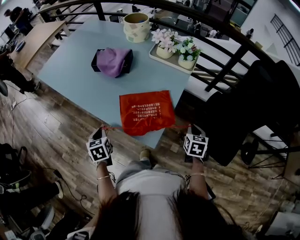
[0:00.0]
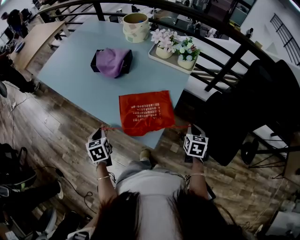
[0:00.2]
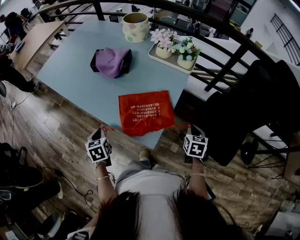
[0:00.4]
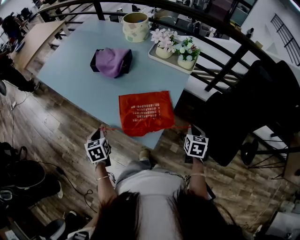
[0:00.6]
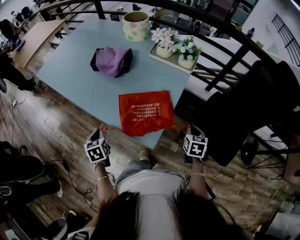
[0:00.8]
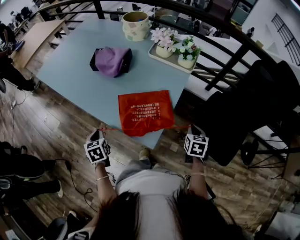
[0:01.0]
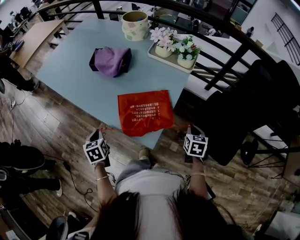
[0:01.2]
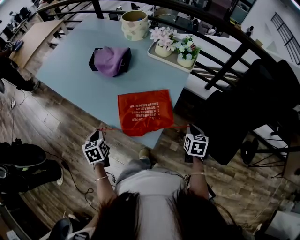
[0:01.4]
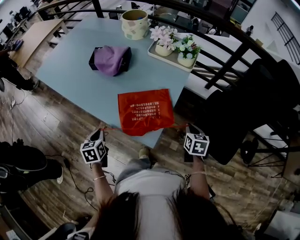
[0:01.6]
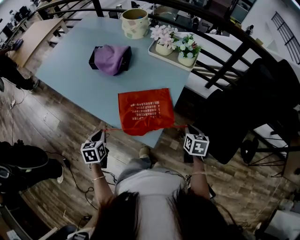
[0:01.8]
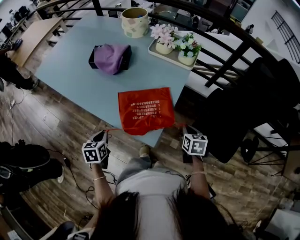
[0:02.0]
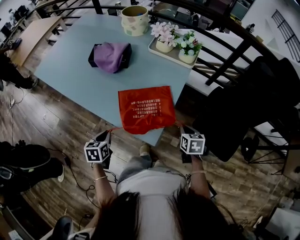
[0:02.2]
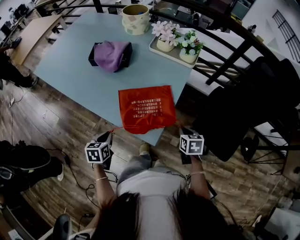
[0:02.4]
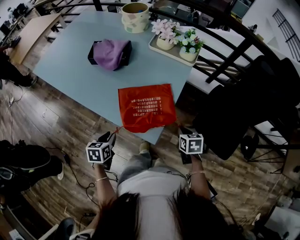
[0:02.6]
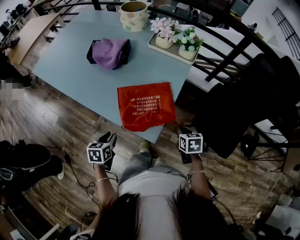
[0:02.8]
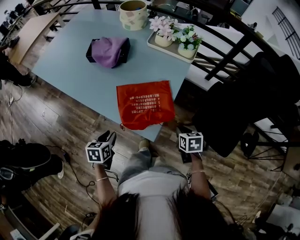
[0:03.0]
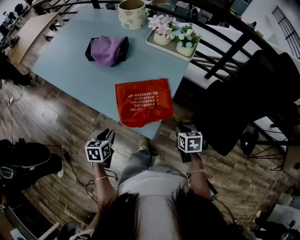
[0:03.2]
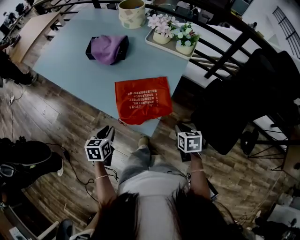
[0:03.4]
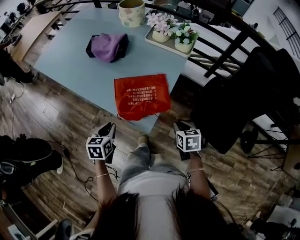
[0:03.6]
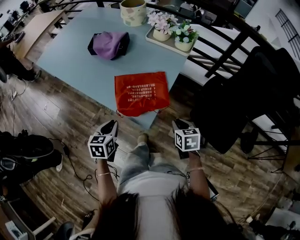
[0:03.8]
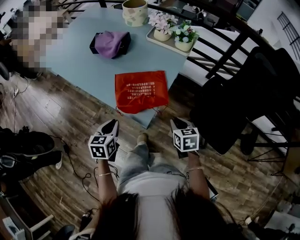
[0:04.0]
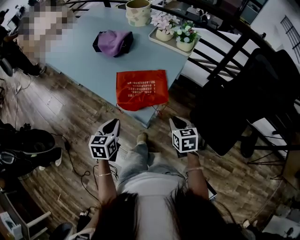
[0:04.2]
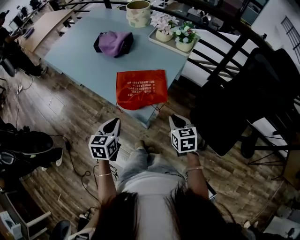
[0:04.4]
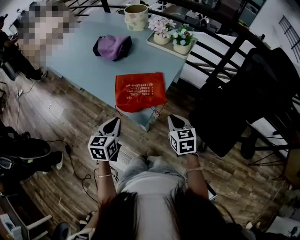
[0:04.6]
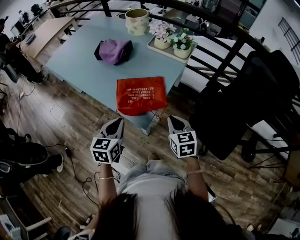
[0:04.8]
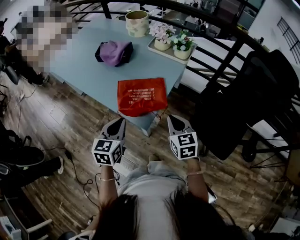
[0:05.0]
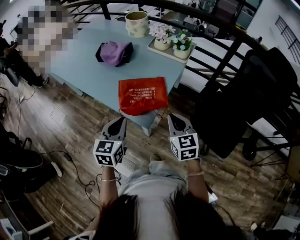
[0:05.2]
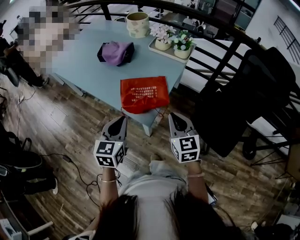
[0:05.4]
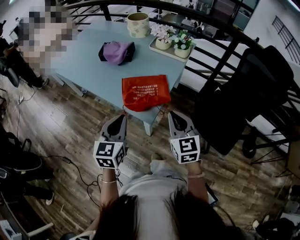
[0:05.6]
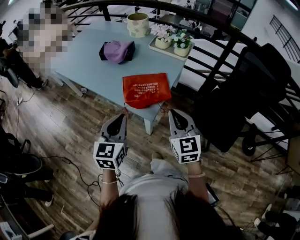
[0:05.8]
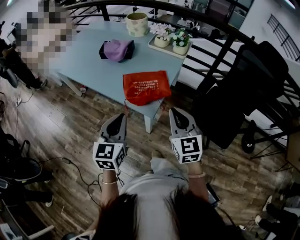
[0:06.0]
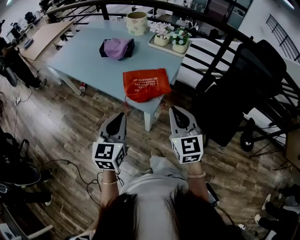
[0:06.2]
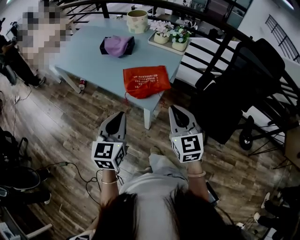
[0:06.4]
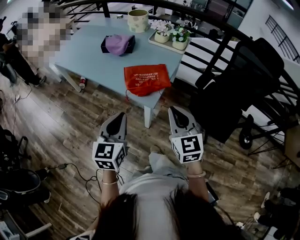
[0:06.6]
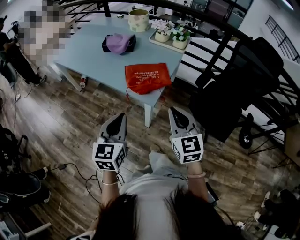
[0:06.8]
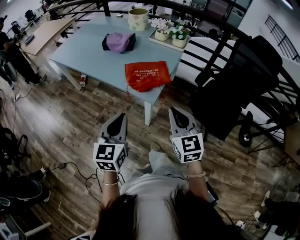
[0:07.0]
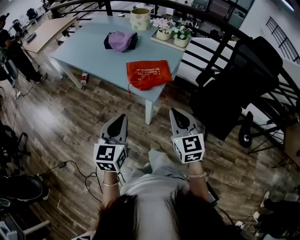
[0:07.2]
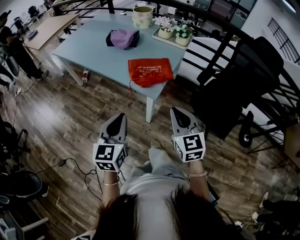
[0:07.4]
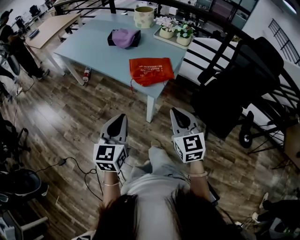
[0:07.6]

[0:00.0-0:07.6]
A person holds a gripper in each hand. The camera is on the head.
0:00.0 to 0:01.6: The grippers make only small movements.
0:01.6 to 0:03.0: The right gripper ends up some 10 cm from where it was. Meanwhile the left gripper heads to the right, covering about 5 cm, and opens its fingers.
0:03.0 to 0:04.6: The left gripper travels upward, to the right and backward by roughly 15 cm, rotates approximately 20 degrees, and closes its fingers, while the right gripper moves upward, about 10 cm, and changes its angle by roughly 30 degrees.
0:04.6 to 0:06.0: The right gripper goes about 20 cm upward, backward and to the left, and rotates approximately 30 degrees; the left gripper heads upward and backward, covering about 15 cm.
0:06.0 to 0:07.6: The two grippers go roughly 15 cm backward.

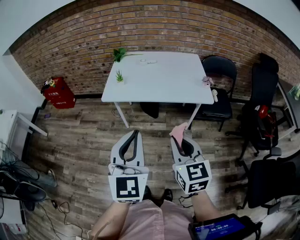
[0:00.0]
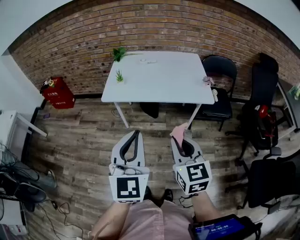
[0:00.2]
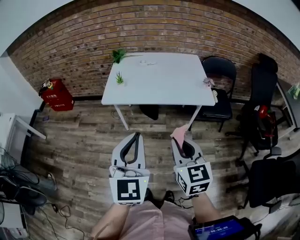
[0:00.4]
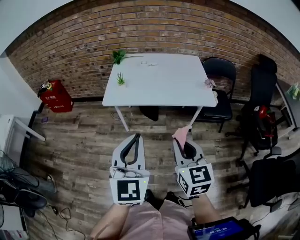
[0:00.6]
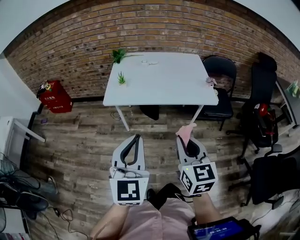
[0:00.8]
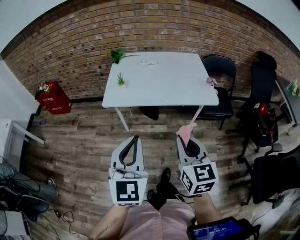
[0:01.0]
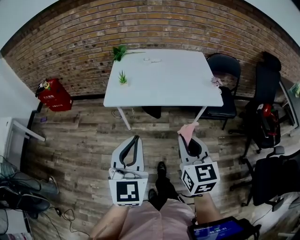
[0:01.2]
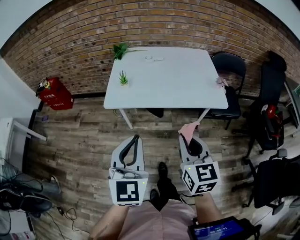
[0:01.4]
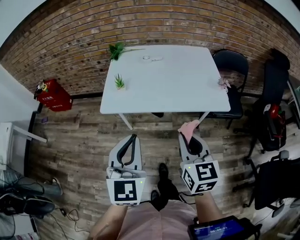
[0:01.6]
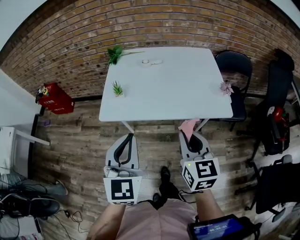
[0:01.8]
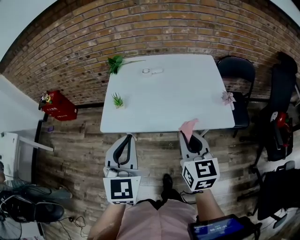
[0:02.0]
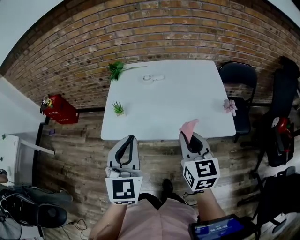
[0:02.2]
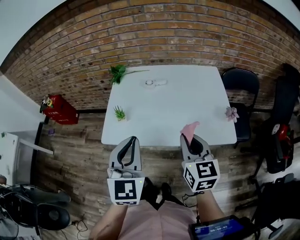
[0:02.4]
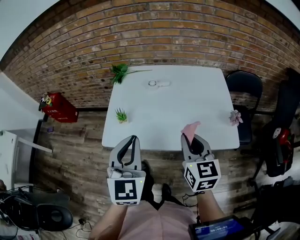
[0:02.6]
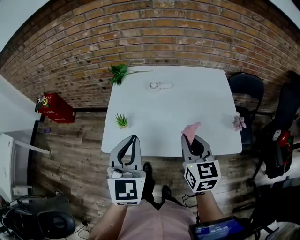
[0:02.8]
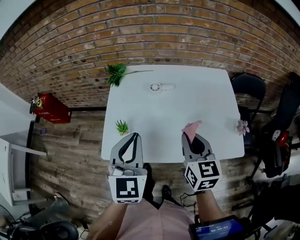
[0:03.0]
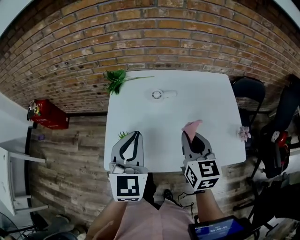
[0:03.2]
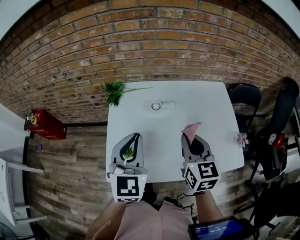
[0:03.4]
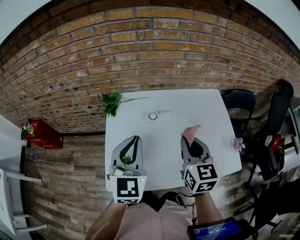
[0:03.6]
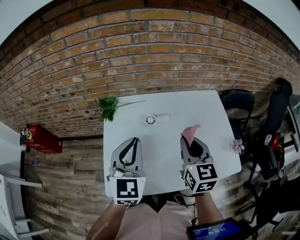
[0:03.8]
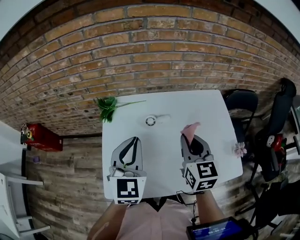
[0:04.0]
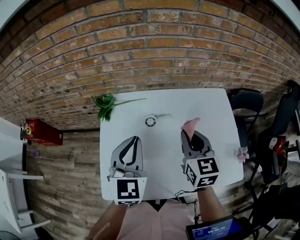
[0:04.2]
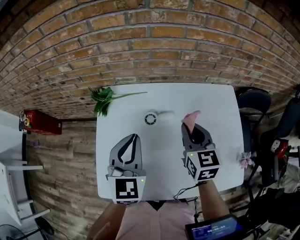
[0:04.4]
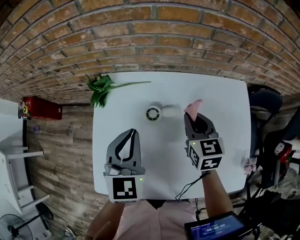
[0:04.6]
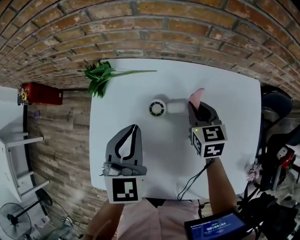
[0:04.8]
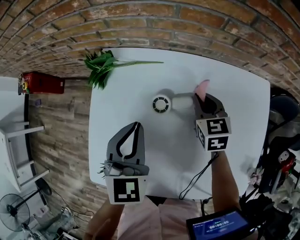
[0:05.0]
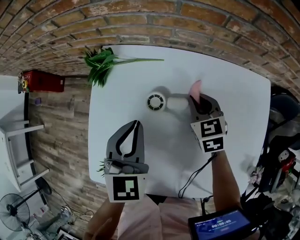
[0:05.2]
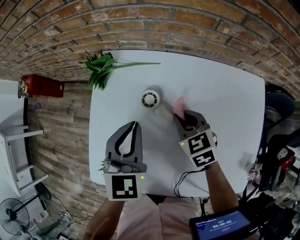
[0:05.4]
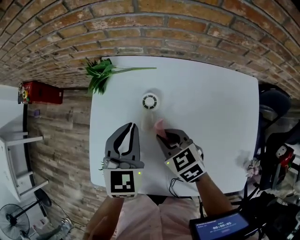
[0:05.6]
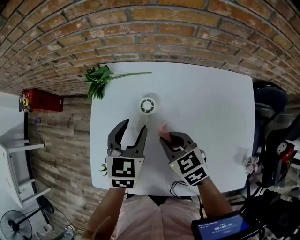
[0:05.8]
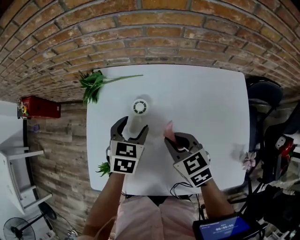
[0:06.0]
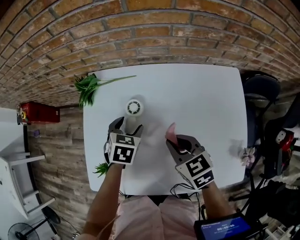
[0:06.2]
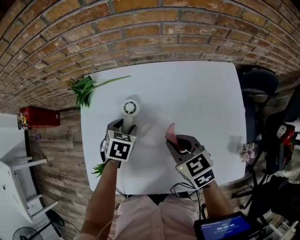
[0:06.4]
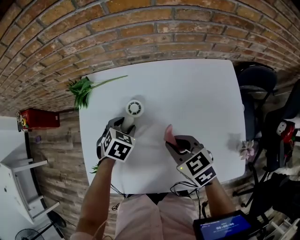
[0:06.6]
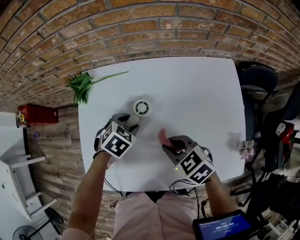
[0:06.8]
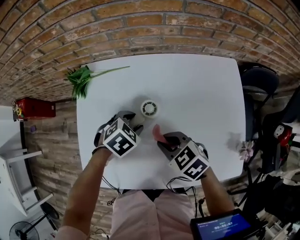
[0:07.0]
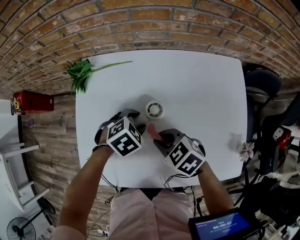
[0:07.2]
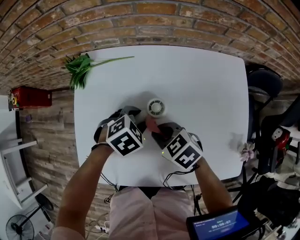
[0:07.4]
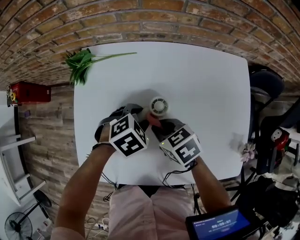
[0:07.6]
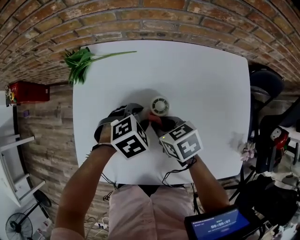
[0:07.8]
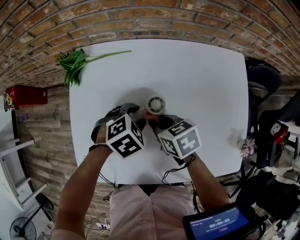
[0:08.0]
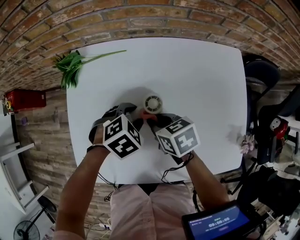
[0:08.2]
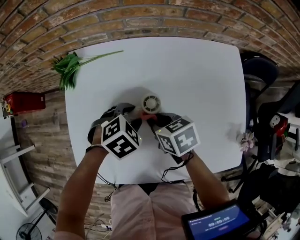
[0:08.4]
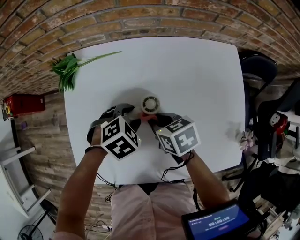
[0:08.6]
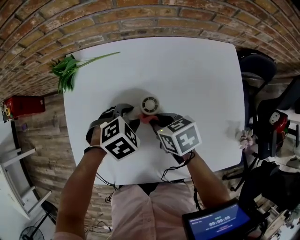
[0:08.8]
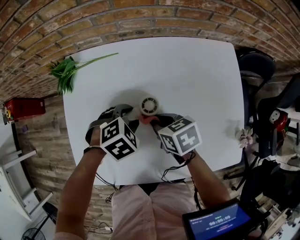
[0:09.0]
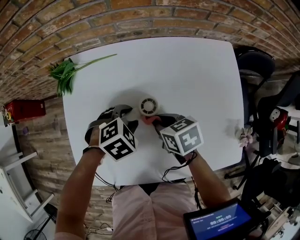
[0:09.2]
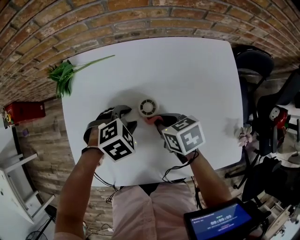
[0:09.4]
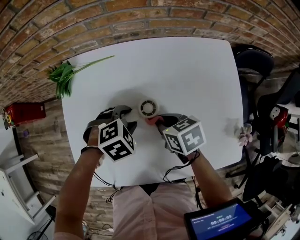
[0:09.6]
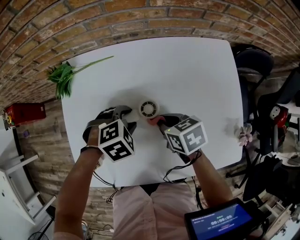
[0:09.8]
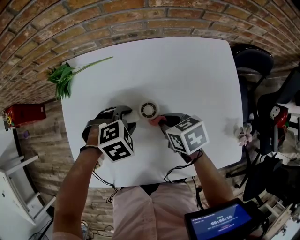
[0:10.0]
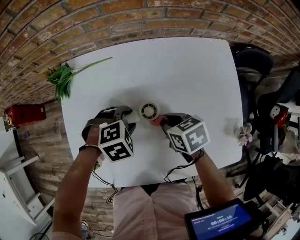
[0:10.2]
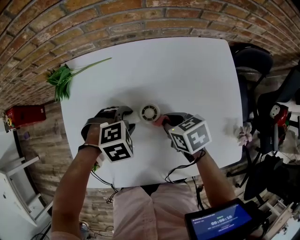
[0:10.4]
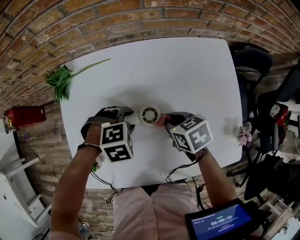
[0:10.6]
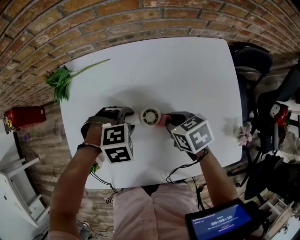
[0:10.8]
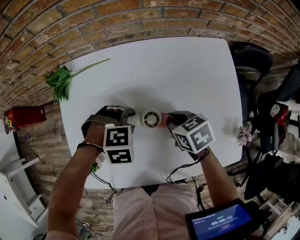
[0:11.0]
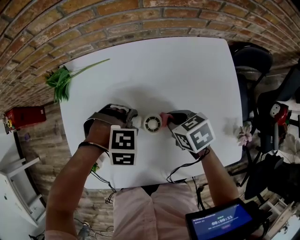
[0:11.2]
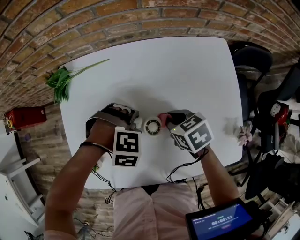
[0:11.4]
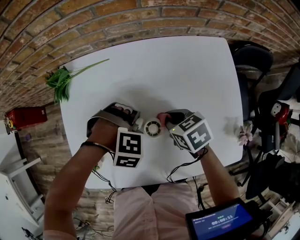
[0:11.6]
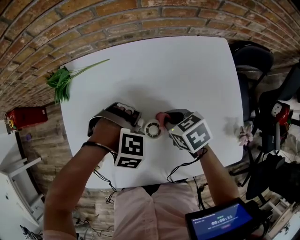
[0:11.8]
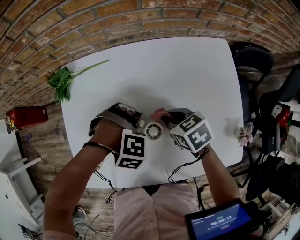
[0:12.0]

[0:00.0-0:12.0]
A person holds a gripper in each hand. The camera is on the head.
0:00.0 to 0:01.6: Both grippers travel together forward, some 15 cm.
0:01.6 to 0:03.0: Both grippers travel together forward, some 30 cm.
0:03.0 to 0:04.4: The grippers both shift forward by roughly 20 cm.
0:04.4 to 0:06.0: The left gripper moves downward, about 15 cm, rotates approximately 30 degrees, and opens; the right gripper heads downward, covering approximately 10 cm, and changes its angle by some 30 degrees.
0:06.0 to 0:07.6: The right gripper shifts roughly 5 cm downward. The left gripper ends up roughly 10 cm from where it was, and swivels approximately 40 degrees.
0:07.6 to 0:09.0: There are only small adjustments of the grippers.
0:09.0 to 0:10.4: The right gripper is displaced to the right by roughly 5 cm.
0:10.4 to 0:12.0: The left gripper turns by about 40 degrees.

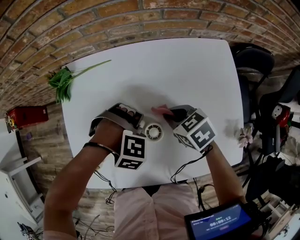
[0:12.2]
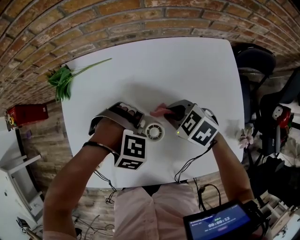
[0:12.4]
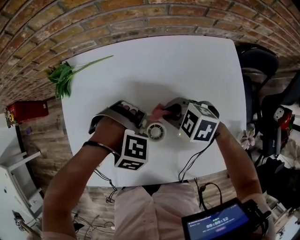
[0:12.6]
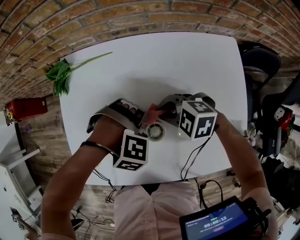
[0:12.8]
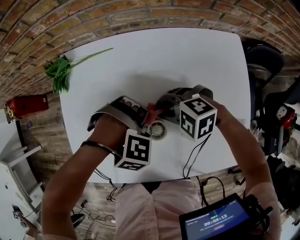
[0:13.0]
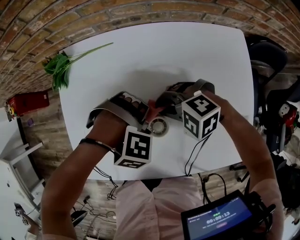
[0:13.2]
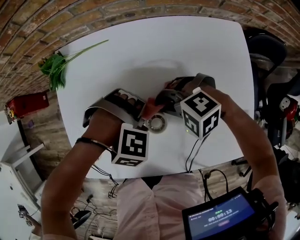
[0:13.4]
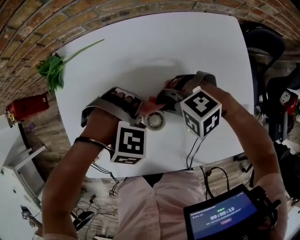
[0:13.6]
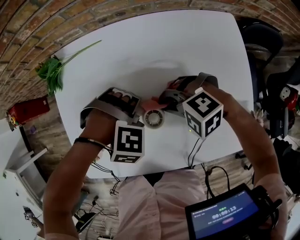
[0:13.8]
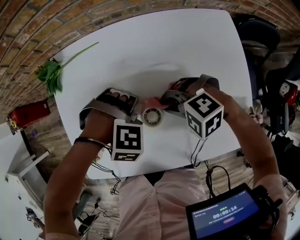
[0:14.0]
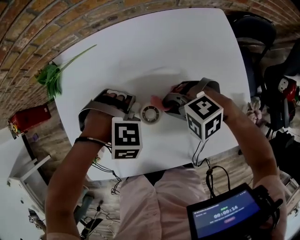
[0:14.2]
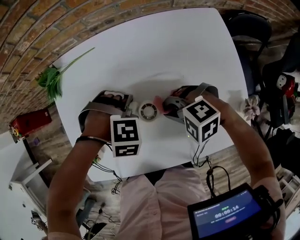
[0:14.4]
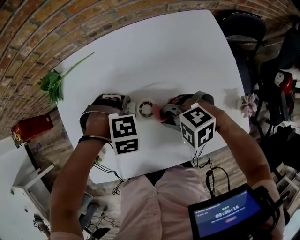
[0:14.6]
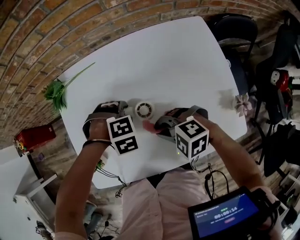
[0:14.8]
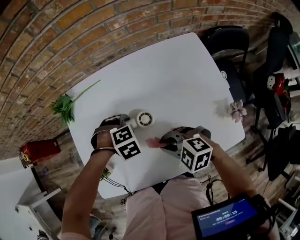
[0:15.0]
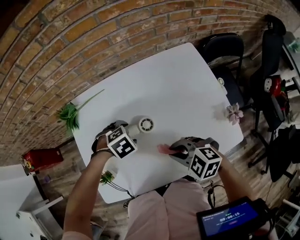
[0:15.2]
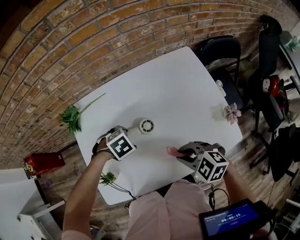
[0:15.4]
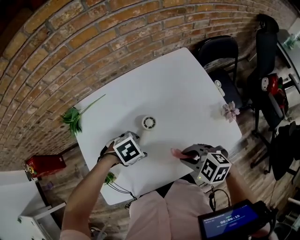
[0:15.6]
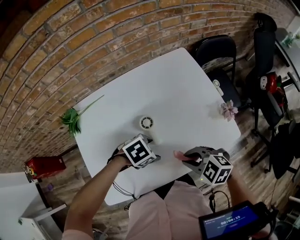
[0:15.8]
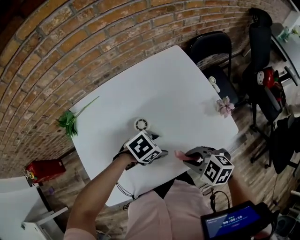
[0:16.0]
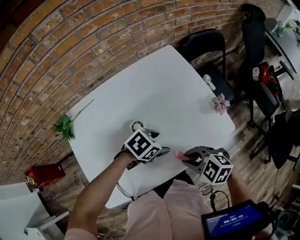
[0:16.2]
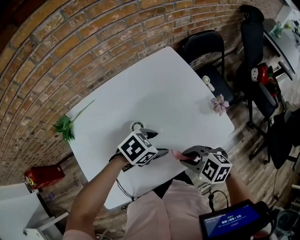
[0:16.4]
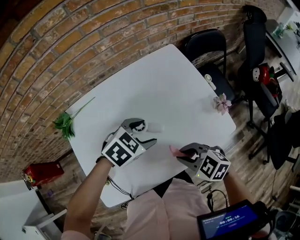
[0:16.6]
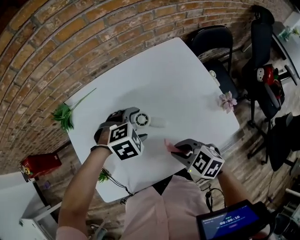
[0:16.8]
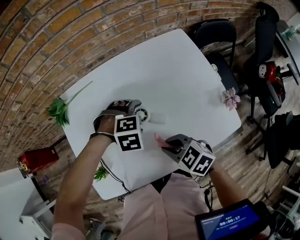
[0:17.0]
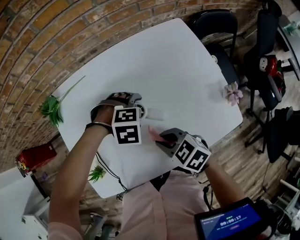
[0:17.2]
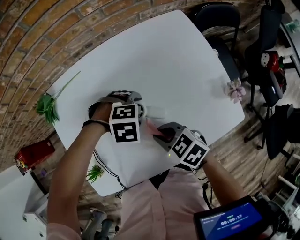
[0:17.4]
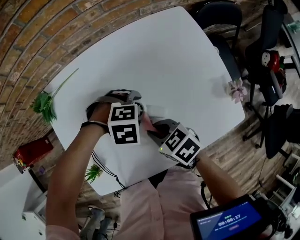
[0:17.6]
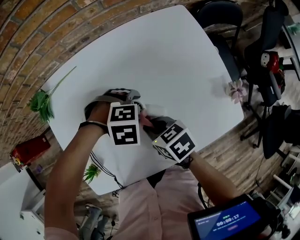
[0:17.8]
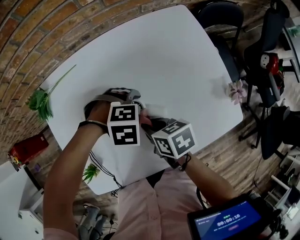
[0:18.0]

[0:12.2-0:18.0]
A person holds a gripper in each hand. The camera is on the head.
0:12.2 to 0:13.6: The right gripper changes place by some 5 cm, and rotates around the line of its fingers by approximately 70 degrees, counterclockwise from behind.
0:13.6 to 0:15.0: The right gripper shifts by roughly 10 cm, and rotates roughly 40 degrees; the left gripper swivels approximately 30 degrees.
0:15.0 to 0:16.6: The left gripper moves roughly 15 cm, and changes its angle by about 40 degrees; the right gripper changes place by about 10 cm, and turns by approximately 30 degrees.
0:16.6 to 0:18.0: The right gripper ends up some 15 cm from where it was, and rolls clockwise, seen from behind, by some 50 degrees, while the left gripper moves downward, roughly 10 cm, and rotates about 40 degrees.
